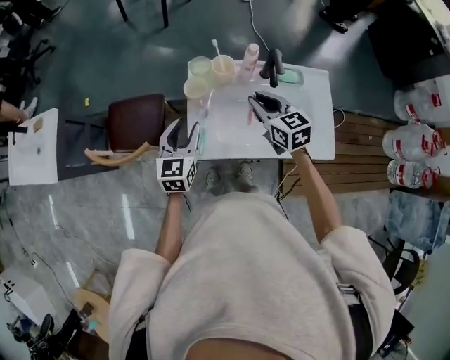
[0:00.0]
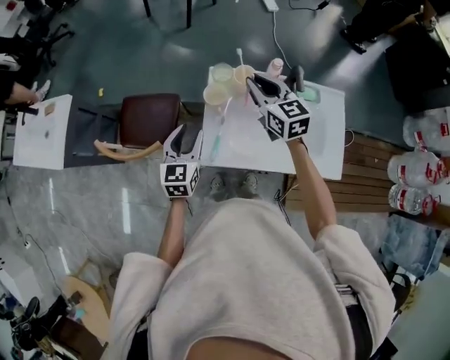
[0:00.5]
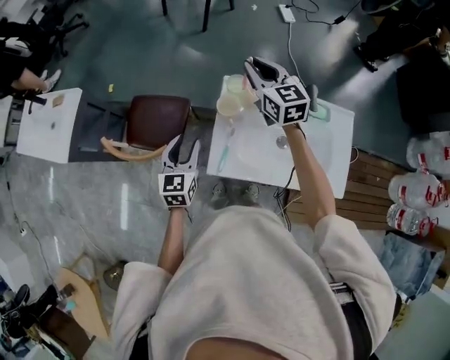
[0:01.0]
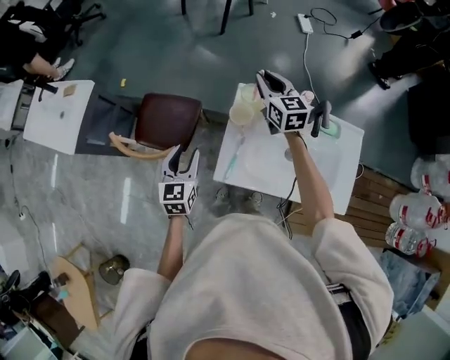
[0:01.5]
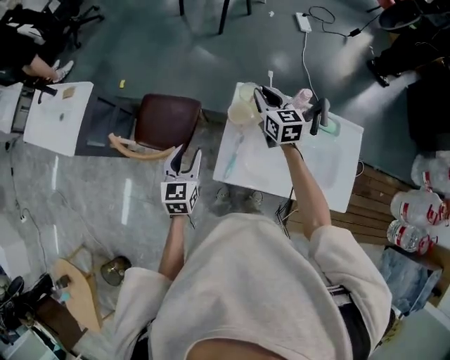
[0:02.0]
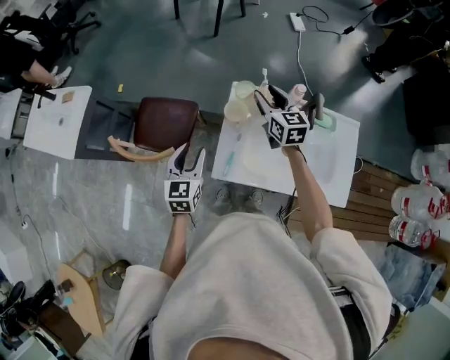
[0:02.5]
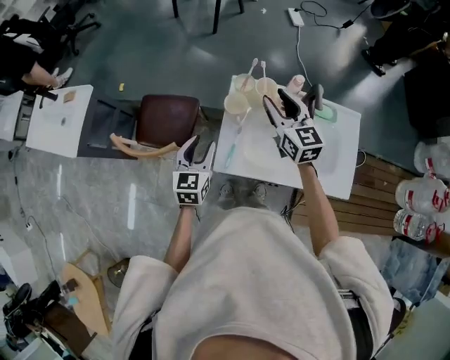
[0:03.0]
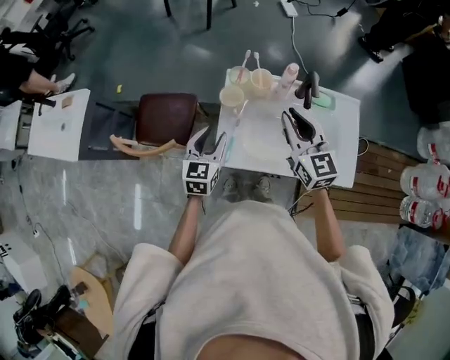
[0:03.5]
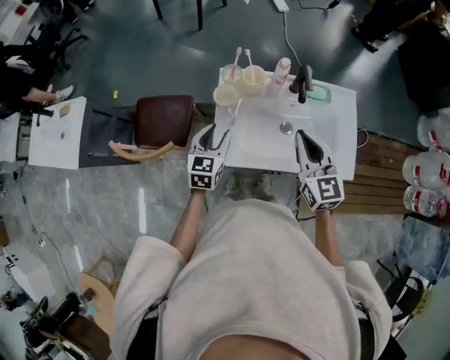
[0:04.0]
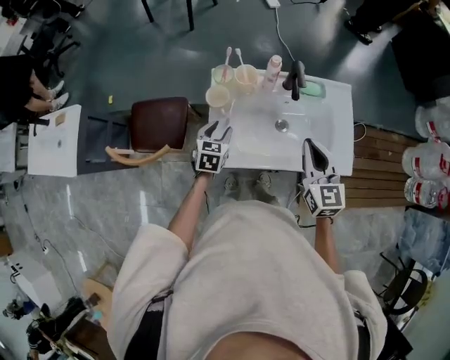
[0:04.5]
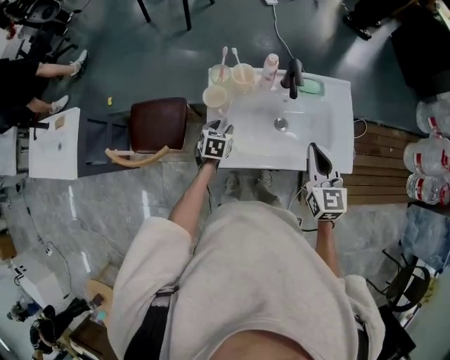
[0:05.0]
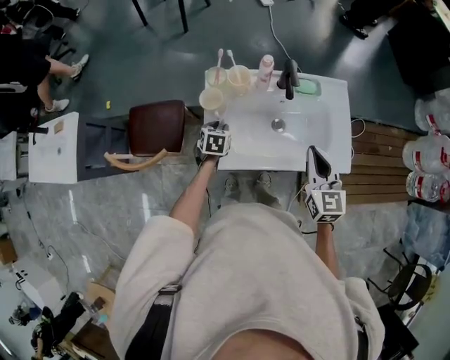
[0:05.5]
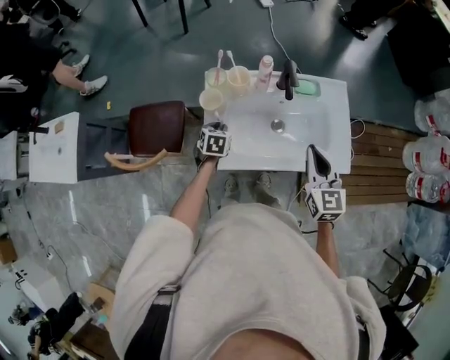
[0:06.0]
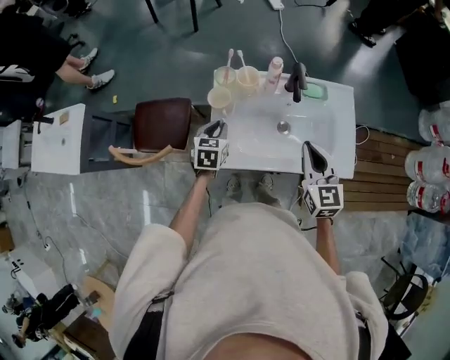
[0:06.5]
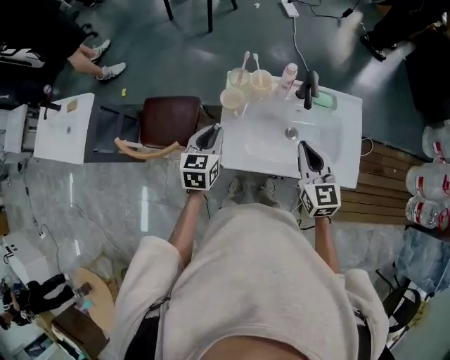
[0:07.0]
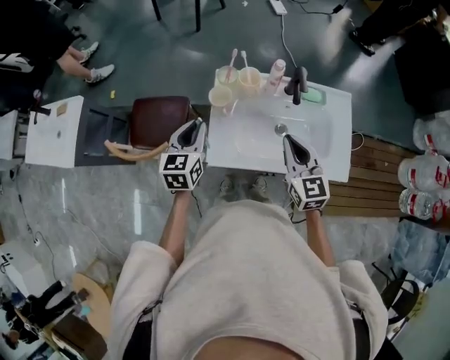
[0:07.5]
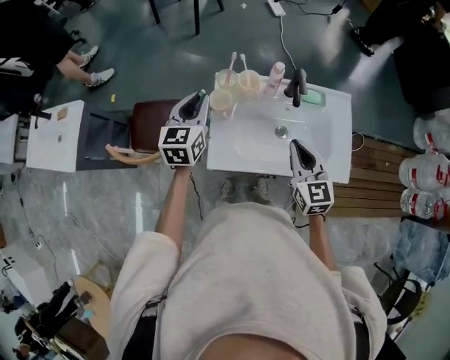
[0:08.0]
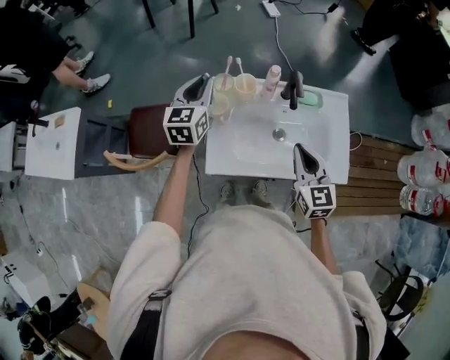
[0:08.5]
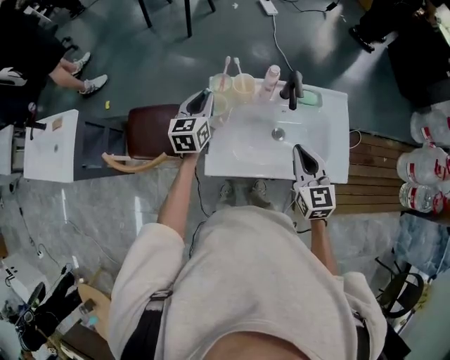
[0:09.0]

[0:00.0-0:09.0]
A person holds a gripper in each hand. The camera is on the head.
0:00.0 to 0:02.0: The left gripper is displaced to the left by some 10 cm. Meanwhile the right gripper shifts roughly 20 cm forward and to the left.
0:02.0 to 0:04.5: The right gripper heads backward and to the right, covering some 30 cm, rotates some 20 degrees, and opens and closes again; the left gripper moves to the right and downward, some 20 cm, and swivels roughly 30 degrees.
0:04.5 to 0:07.0: The left gripper is displaced upward by about 10 cm, and closes up.
0:07.0 to 0:09.0: The left gripper travels forward by approximately 15 cm.

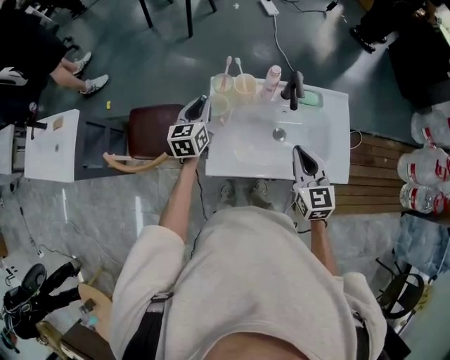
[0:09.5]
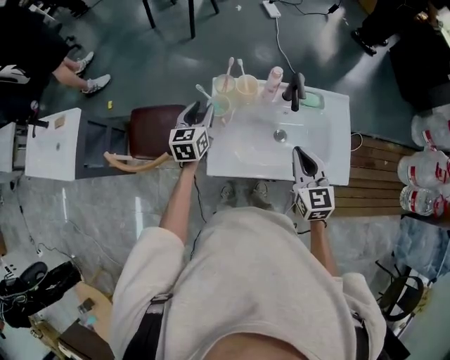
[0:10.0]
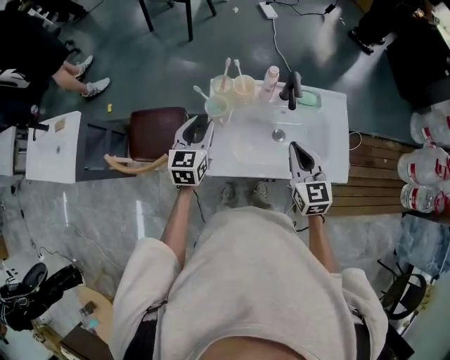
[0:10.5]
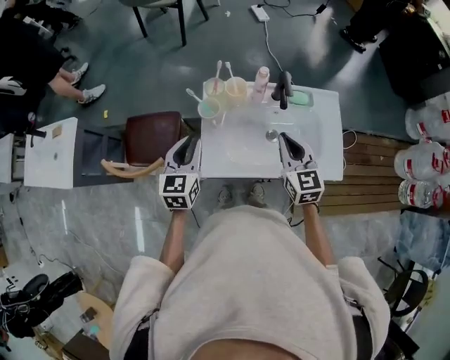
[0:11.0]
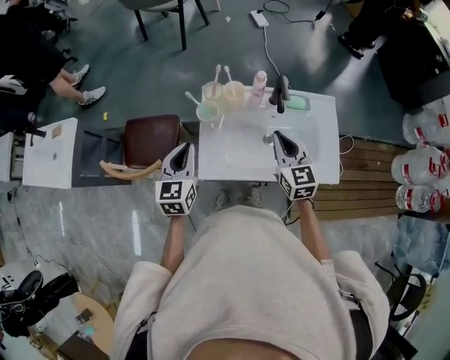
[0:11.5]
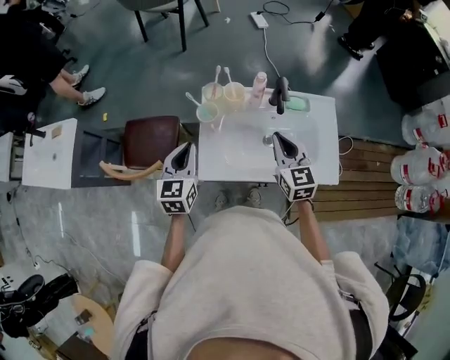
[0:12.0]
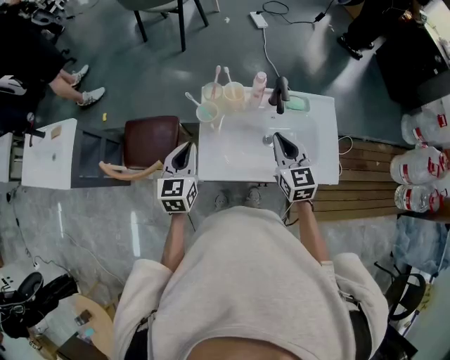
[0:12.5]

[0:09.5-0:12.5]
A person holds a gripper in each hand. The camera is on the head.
0:09.5 to 0:11.0: The left gripper is displaced backward by approximately 15 cm.
0:11.0 to 0:12.5: The grippers make only small movements.

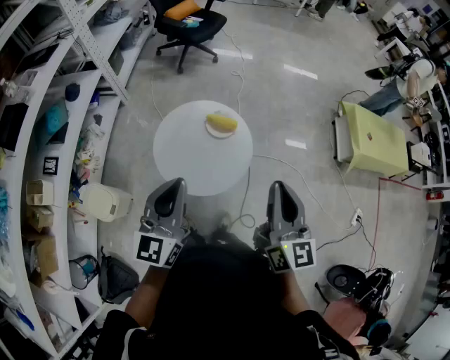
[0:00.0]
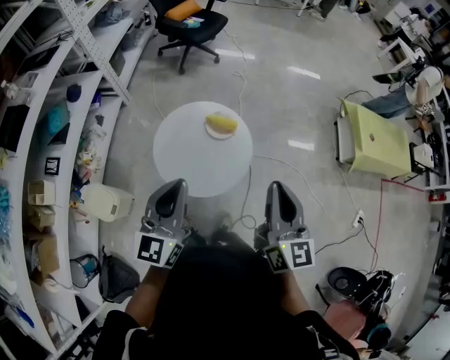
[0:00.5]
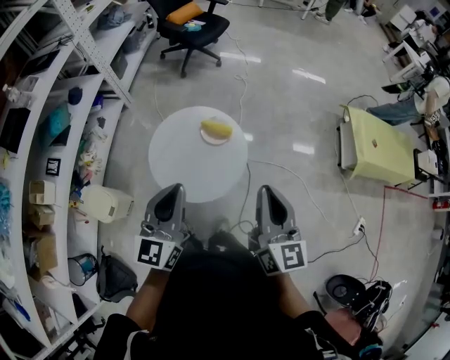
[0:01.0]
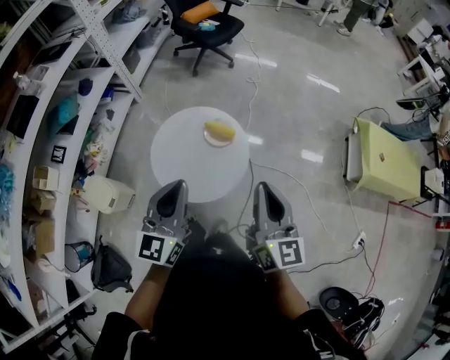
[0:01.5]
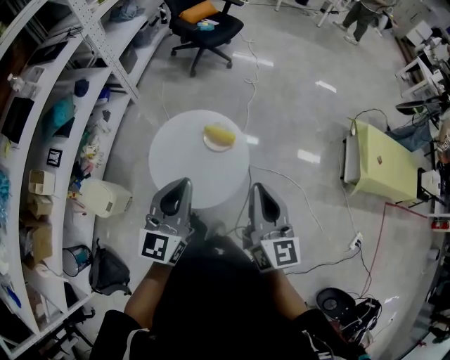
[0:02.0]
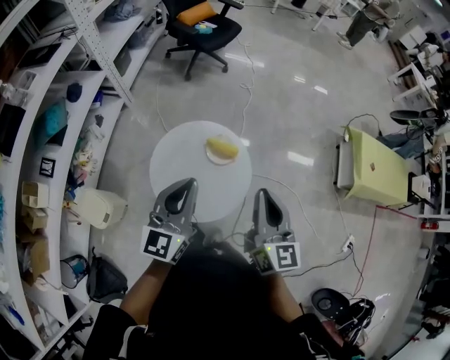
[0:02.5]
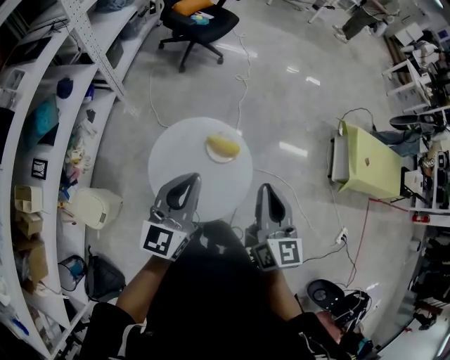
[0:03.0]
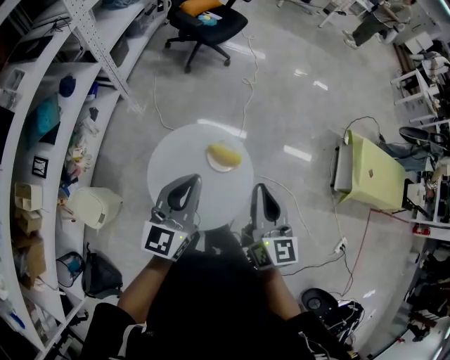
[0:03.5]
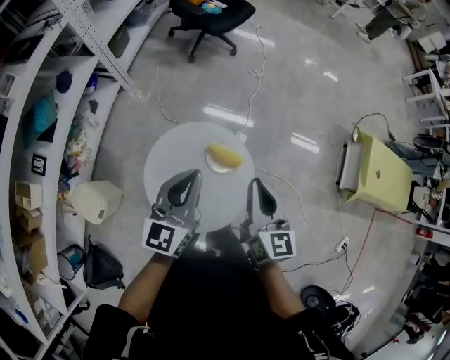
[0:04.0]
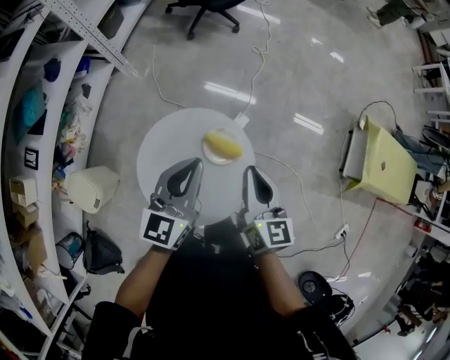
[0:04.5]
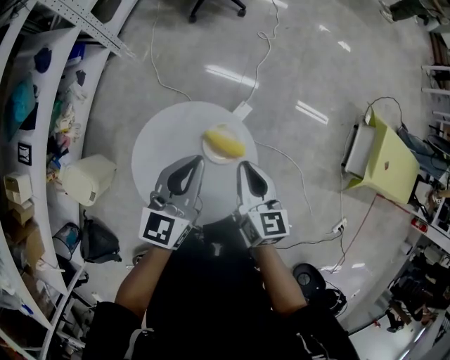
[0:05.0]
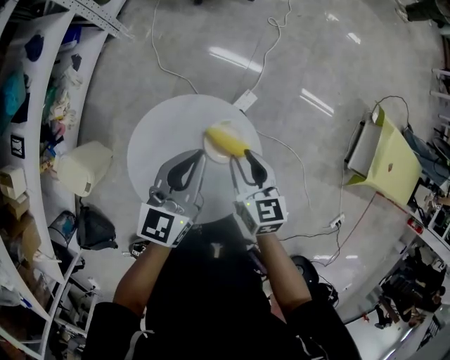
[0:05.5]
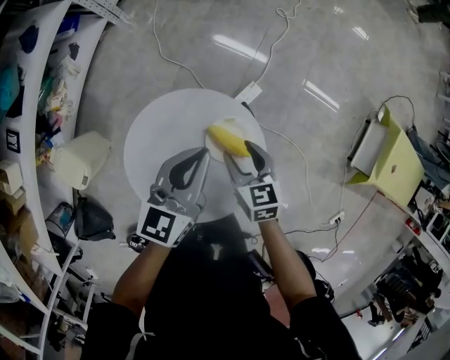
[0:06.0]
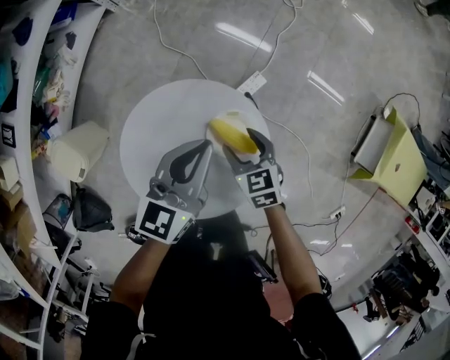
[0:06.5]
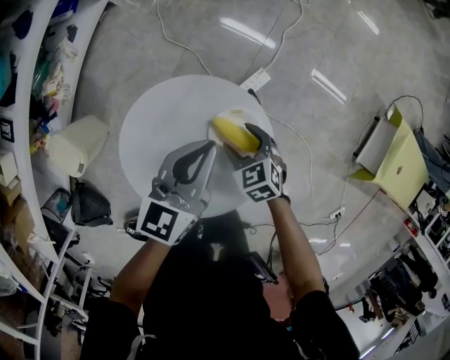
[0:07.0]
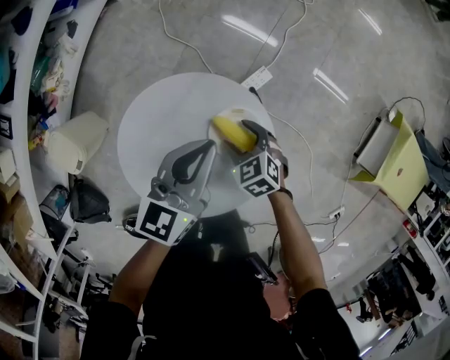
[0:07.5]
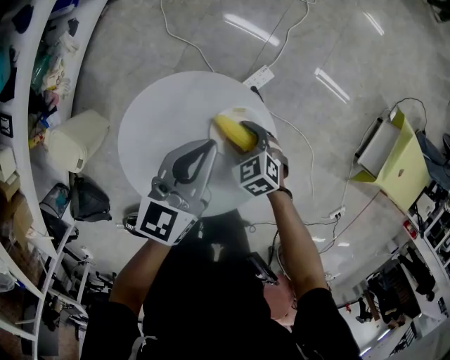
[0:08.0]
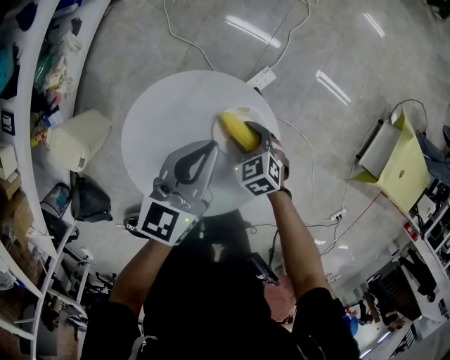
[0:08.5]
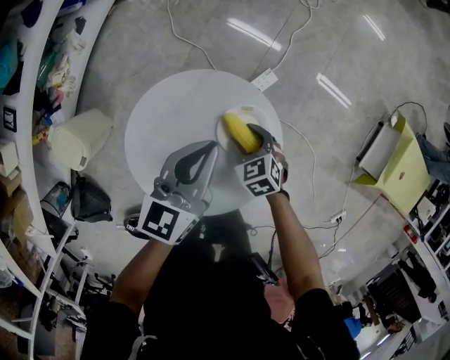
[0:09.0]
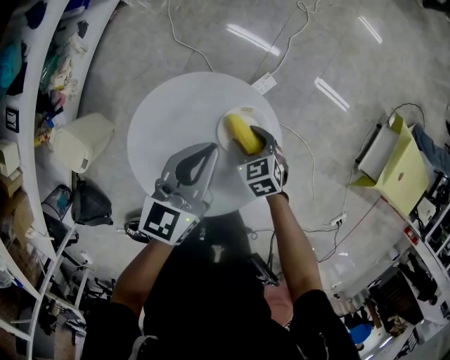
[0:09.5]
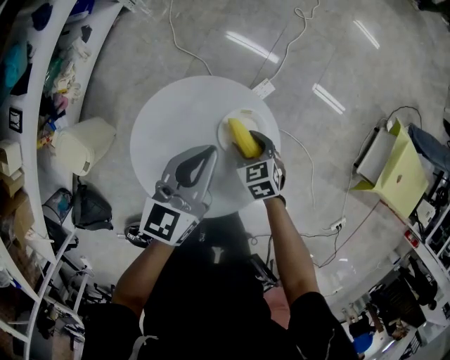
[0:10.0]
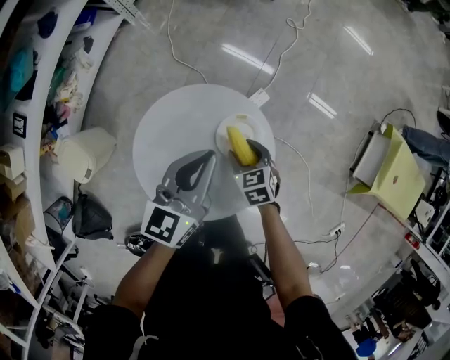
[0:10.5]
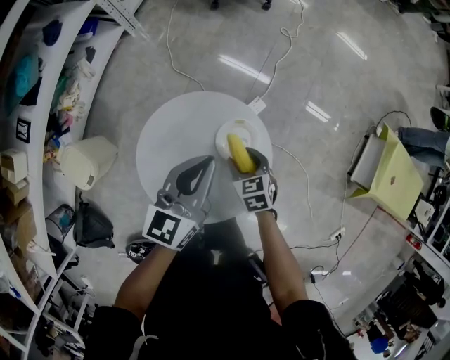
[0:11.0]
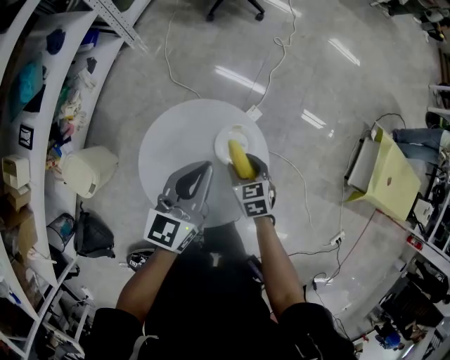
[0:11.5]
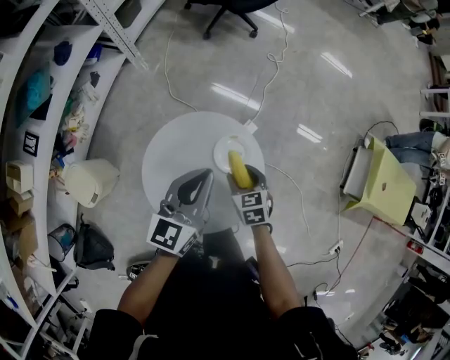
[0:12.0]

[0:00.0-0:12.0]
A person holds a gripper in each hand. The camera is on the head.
0:00.0 to 0:02.0: The right gripper moves forward, approximately 10 cm. Meanwhile the left gripper heads to the right and forward, covering roughly 10 cm.
0:02.0 to 0:04.0: Both grippers travel together forward, approximately 20 cm.
0:04.0 to 0:06.0: The left gripper moves downward and forward, roughly 20 cm, while the right gripper goes roughly 30 cm downward, angles its fingers downward, by about 30 degrees, and opens its fingers.
0:06.0 to 0:08.0: The right gripper shifts about 10 cm downward, and swivels about 40 degrees; the left gripper heads downward, covering roughly 5 cm.
0:08.0 to 0:10.0: The grippers stay close to where they were, moving slightly.
0:10.0 to 0:12.0: The two grippers go roughly 10 cm upward.

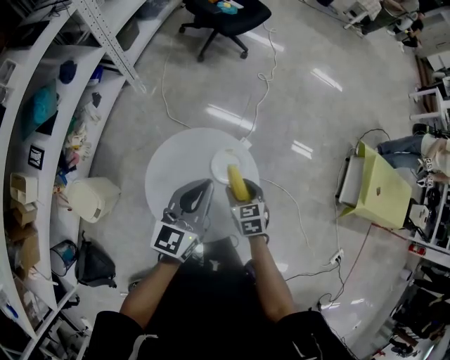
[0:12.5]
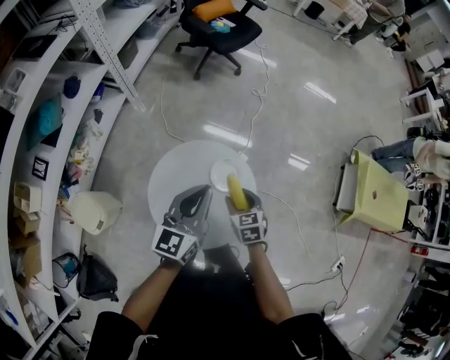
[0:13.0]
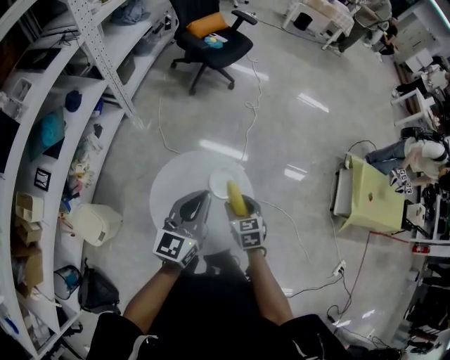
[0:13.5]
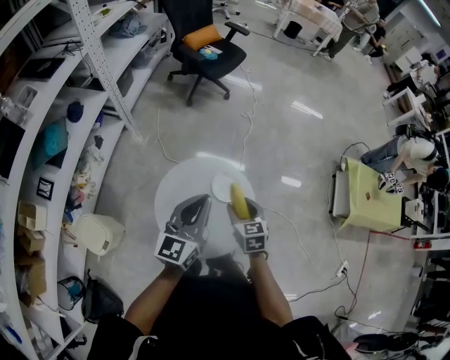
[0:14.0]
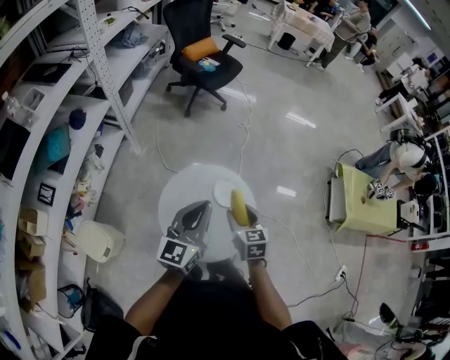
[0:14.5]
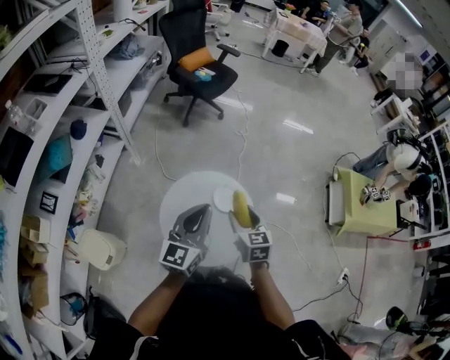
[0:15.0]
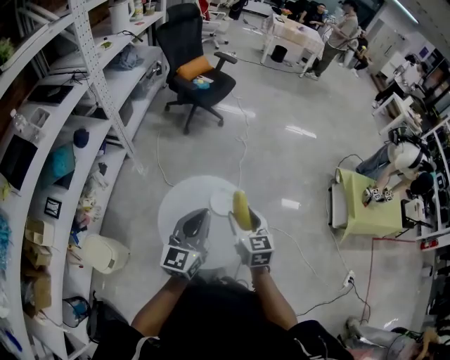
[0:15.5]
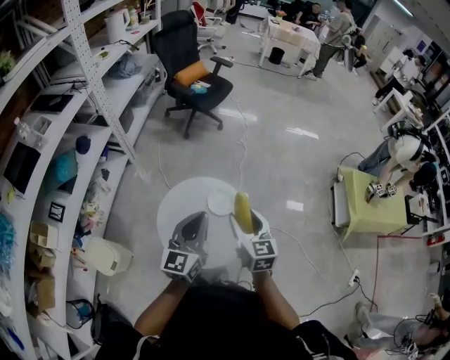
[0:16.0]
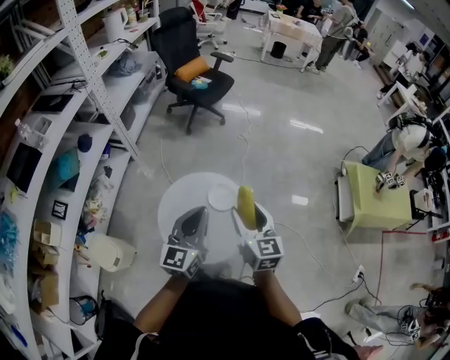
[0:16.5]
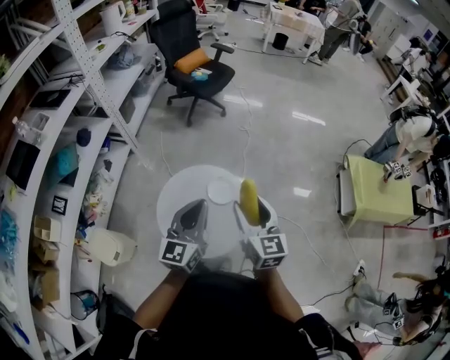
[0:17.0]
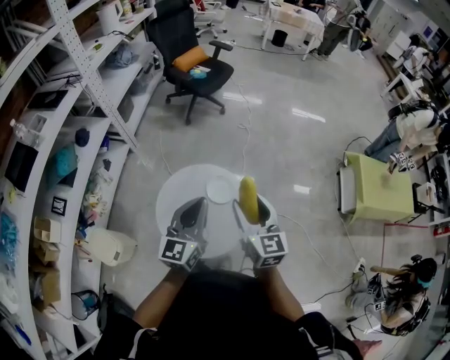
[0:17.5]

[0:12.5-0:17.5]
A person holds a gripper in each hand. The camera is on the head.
0:12.5 to 0:15.0: The left gripper shifts about 10 cm upward and backward. The right gripper moves upward, some 15 cm, and rotates roughly 20 degrees.
0:15.0 to 0:17.5: The left gripper shifts approximately 10 cm to the right; the right gripper is displaced upward and to the right by roughly 15 cm, and rotates about 20 degrees.
